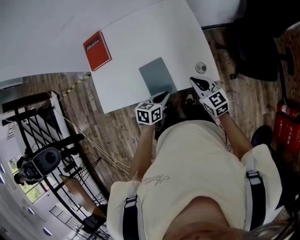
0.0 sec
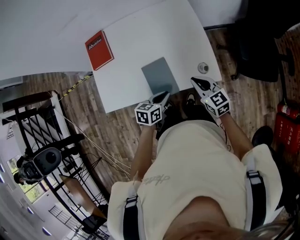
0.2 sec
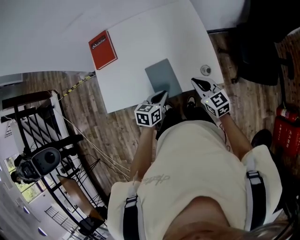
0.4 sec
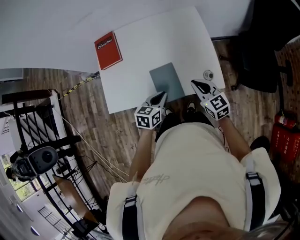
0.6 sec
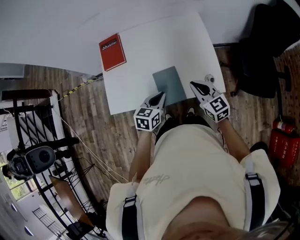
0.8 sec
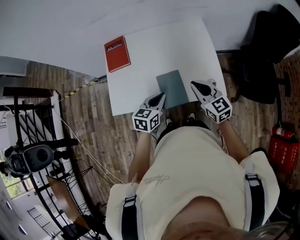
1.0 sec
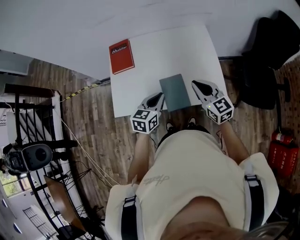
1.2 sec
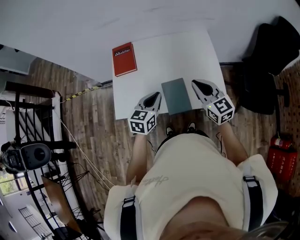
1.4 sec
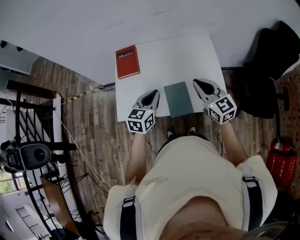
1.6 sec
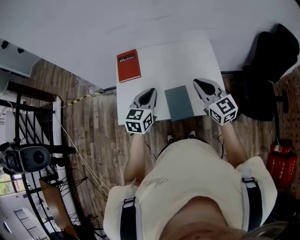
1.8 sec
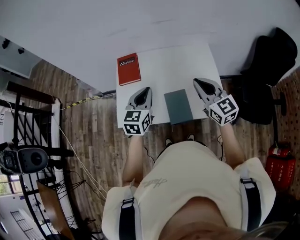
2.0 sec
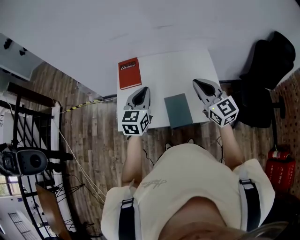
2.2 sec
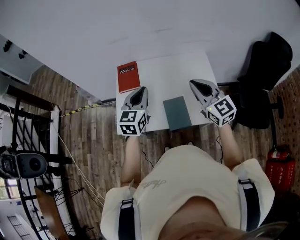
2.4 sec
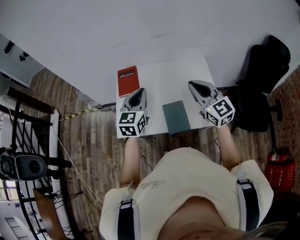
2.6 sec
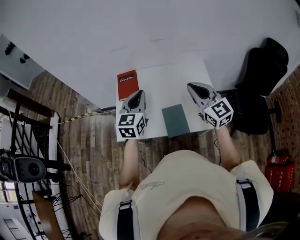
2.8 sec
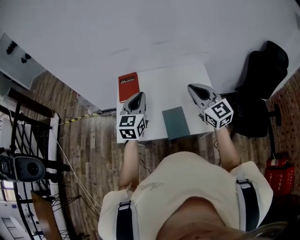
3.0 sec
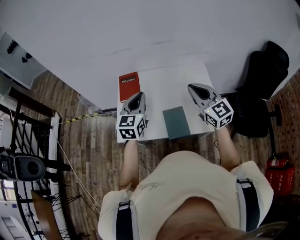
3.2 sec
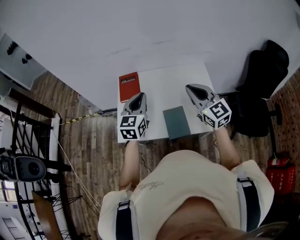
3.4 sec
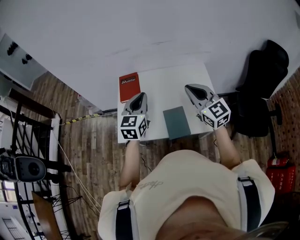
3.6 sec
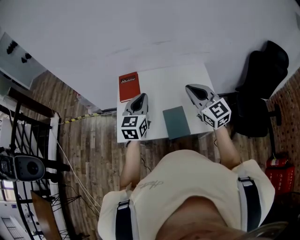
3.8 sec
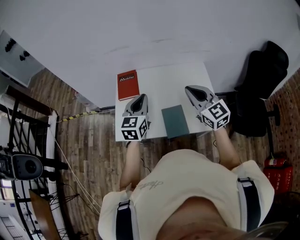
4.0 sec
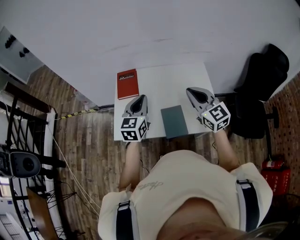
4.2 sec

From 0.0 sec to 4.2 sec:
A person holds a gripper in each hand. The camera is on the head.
From 0.0 sec to 1.4 sec: Both grippers travel together upward and to the left, some 20 cm. The left gripper rotates roughly 30 degrees.
From 1.4 sec to 2.8 sec: The left gripper goes some 15 cm upward and forward, and changes its angle by approximately 20 degrees, while the right gripper is displaced upward by some 10 cm.
From 2.8 sec to 4.2 sec: The grippers stay close to where they were, moving slightly.

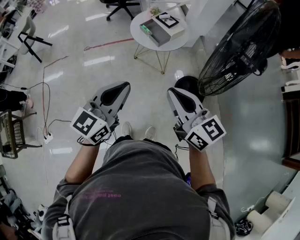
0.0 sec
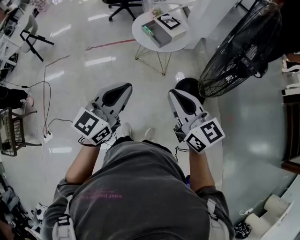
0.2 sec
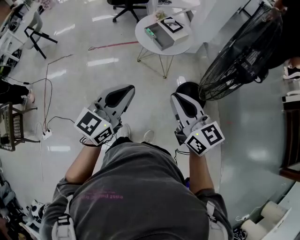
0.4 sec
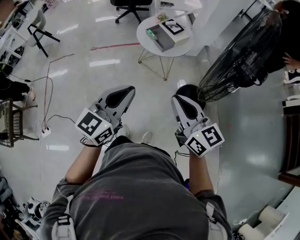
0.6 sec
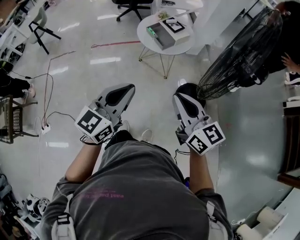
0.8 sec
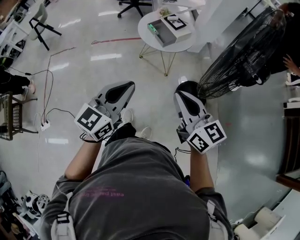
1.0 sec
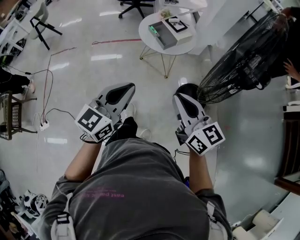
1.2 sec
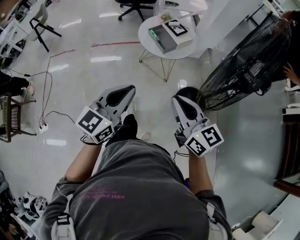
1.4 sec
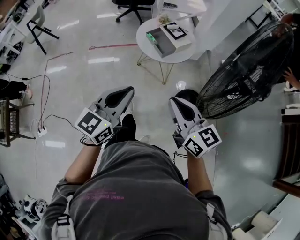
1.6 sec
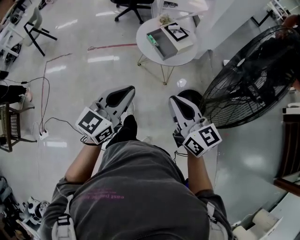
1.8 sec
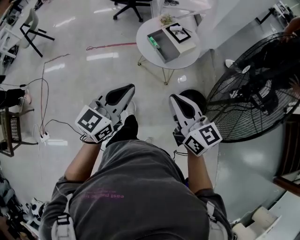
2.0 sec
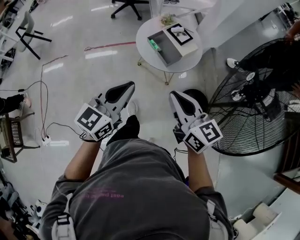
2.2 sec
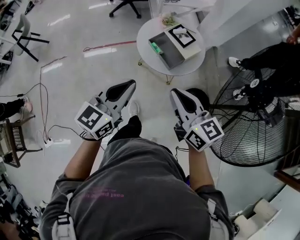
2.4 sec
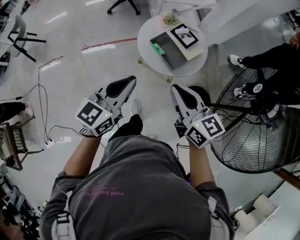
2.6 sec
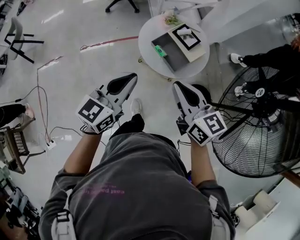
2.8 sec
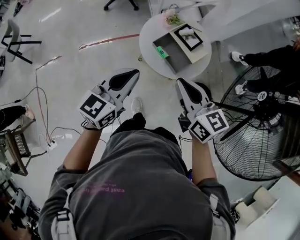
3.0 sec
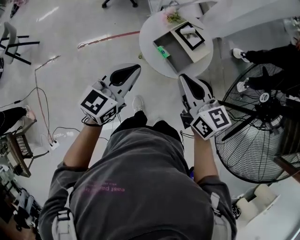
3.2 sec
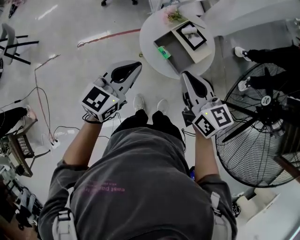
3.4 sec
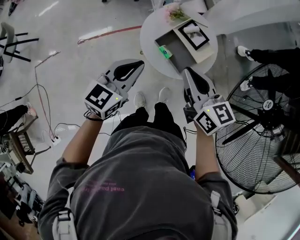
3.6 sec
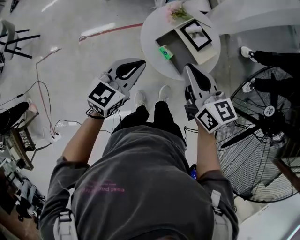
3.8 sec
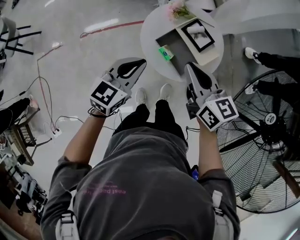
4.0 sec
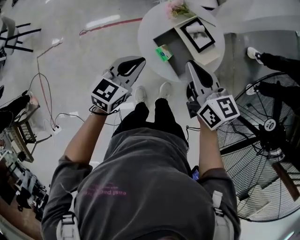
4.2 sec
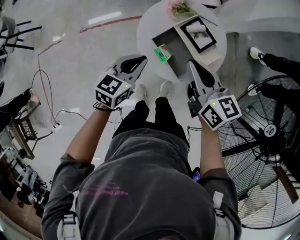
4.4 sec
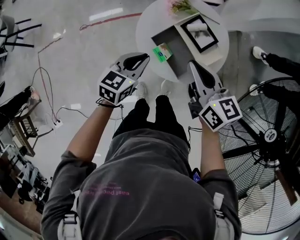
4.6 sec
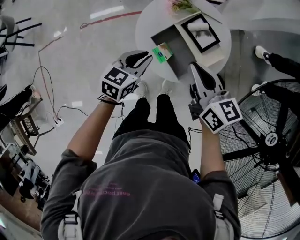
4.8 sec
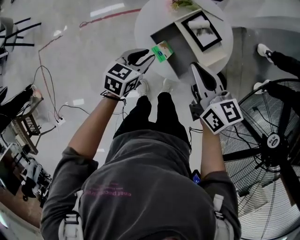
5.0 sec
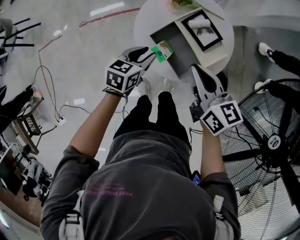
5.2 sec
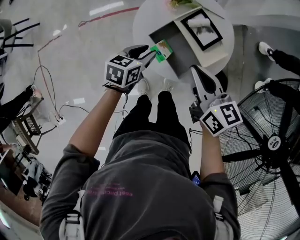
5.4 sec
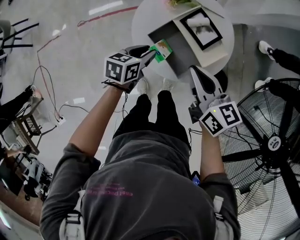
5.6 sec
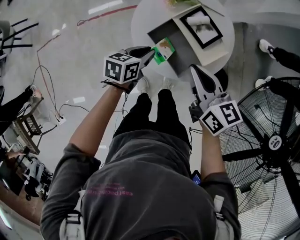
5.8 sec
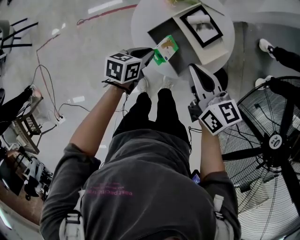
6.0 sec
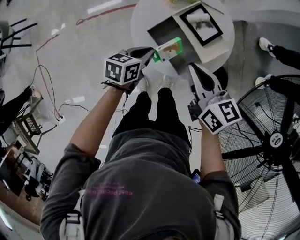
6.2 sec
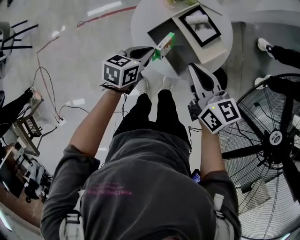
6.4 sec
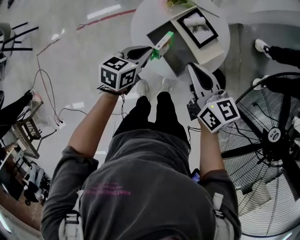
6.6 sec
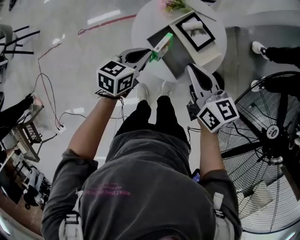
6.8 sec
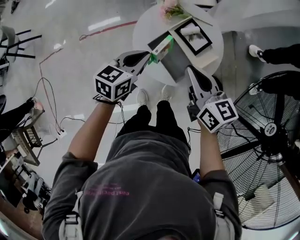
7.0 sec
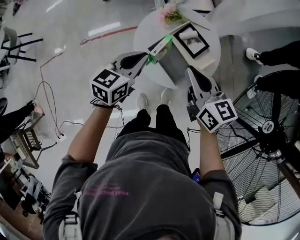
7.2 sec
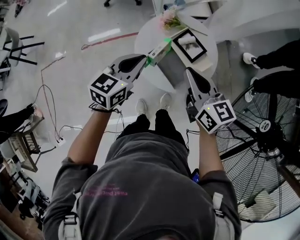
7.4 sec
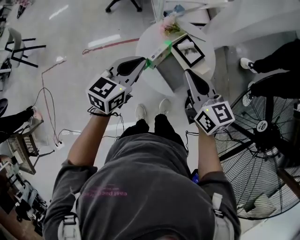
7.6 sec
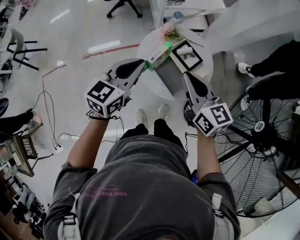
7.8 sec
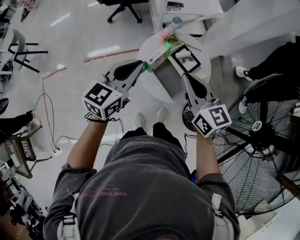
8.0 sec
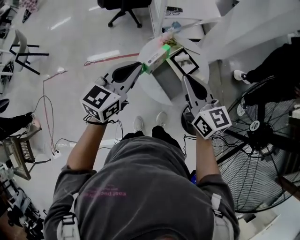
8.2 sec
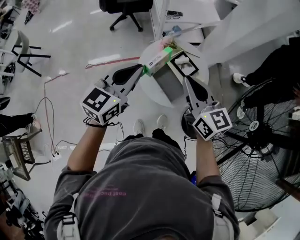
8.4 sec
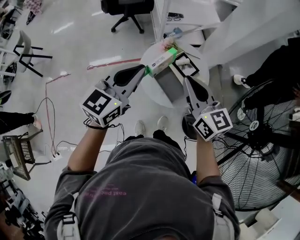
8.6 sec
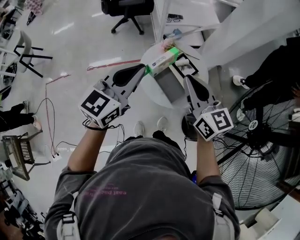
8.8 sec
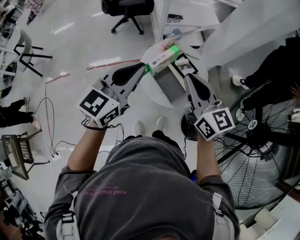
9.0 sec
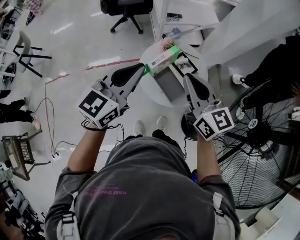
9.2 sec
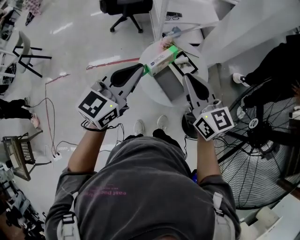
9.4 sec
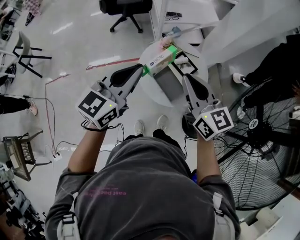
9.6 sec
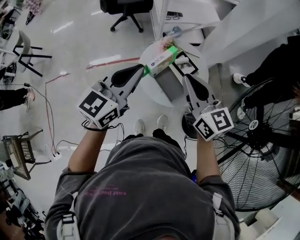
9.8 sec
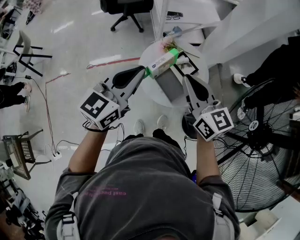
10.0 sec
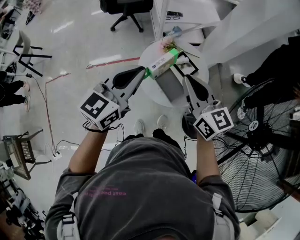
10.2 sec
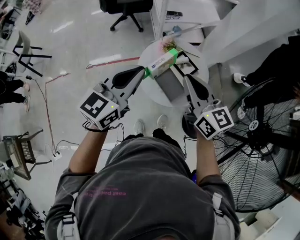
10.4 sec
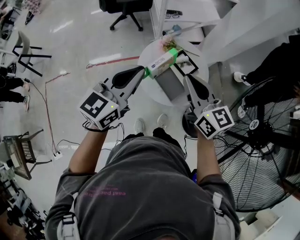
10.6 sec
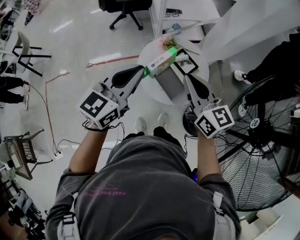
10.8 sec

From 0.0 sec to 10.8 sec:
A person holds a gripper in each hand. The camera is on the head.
From 0.0 sec to 1.6 sec: The left gripper changes place by approximately 5 cm; the right gripper heads forward, covering some 5 cm.
From 1.6 sec to 3.0 sec: Both grippers travel together forward, approximately 35 cm.
From 3.0 sec to 4.6 sec: The left gripper moves downward and forward, roughly 25 cm, and rotates about 20 degrees. The right gripper moves forward and downward, about 20 cm.
From 4.6 sec to 6.2 sec: The right gripper shifts by roughly 5 cm, while the left gripper shifts approximately 10 cm downward, rotates roughly 20 degrees, and opens, then closes once more.
From 6.2 sec to 7.8 sec: The left gripper travels upward by some 30 cm, and rotates about 40 degrees. The right gripper moves upward, about 15 cm.
From 7.8 sec to 9.2 sec: The grippers both shift upward by roughly 10 cm.
From 9.2 sec to 10.8 sec: The grippers make only small movements.

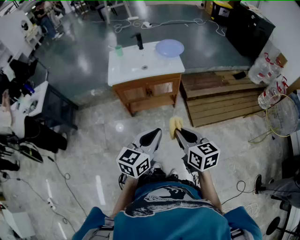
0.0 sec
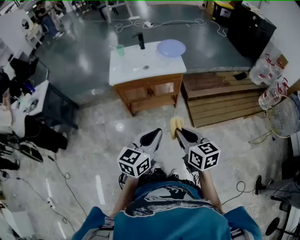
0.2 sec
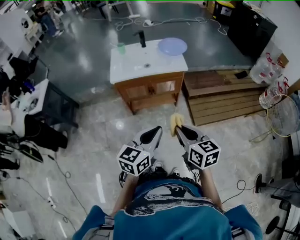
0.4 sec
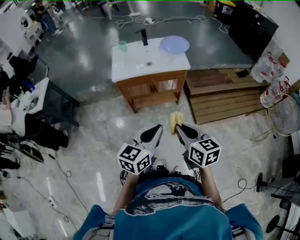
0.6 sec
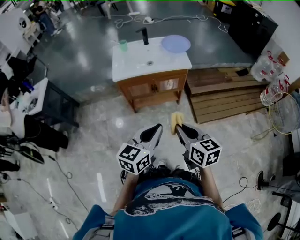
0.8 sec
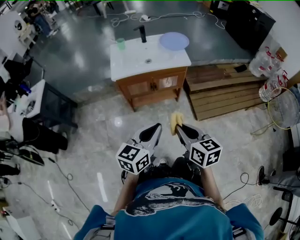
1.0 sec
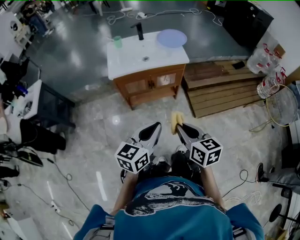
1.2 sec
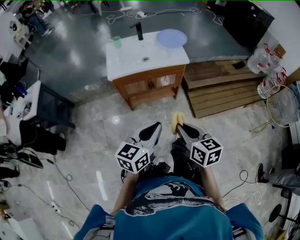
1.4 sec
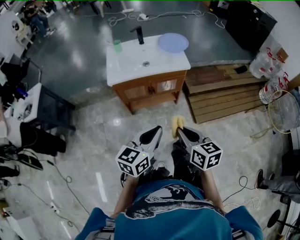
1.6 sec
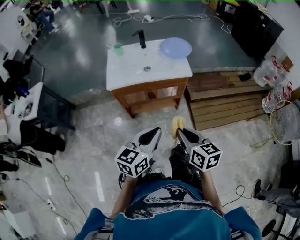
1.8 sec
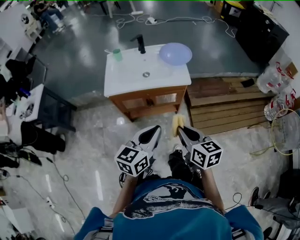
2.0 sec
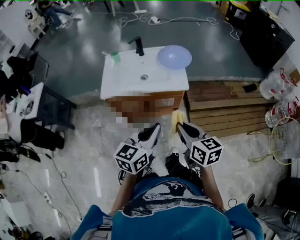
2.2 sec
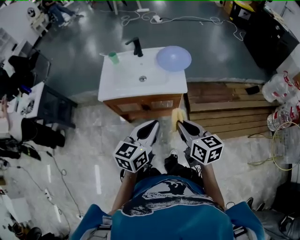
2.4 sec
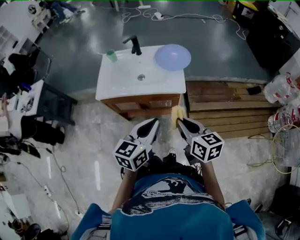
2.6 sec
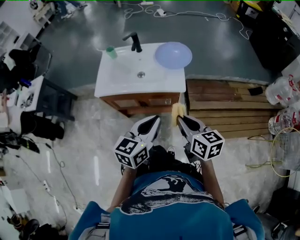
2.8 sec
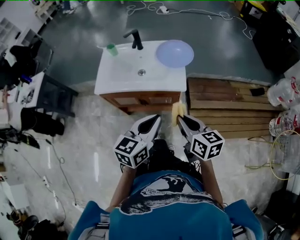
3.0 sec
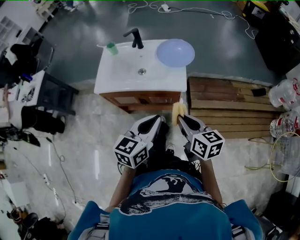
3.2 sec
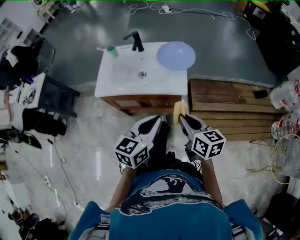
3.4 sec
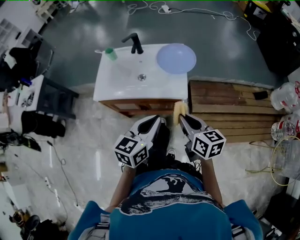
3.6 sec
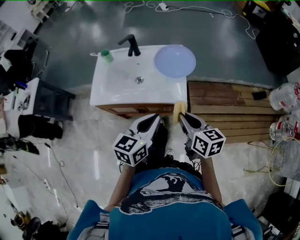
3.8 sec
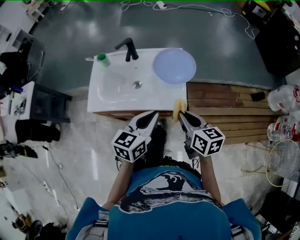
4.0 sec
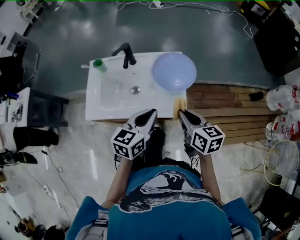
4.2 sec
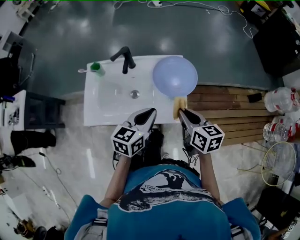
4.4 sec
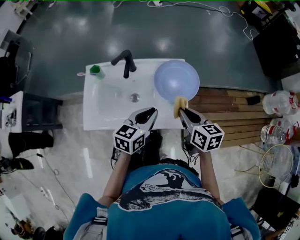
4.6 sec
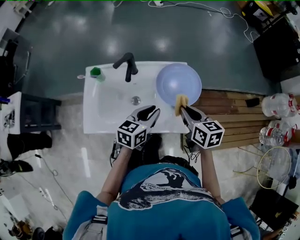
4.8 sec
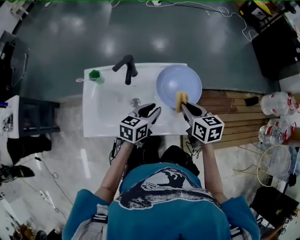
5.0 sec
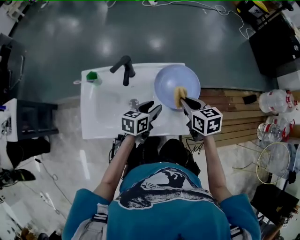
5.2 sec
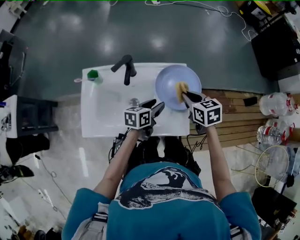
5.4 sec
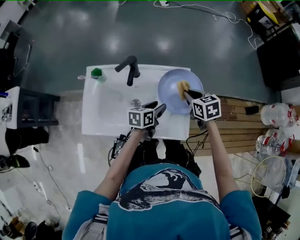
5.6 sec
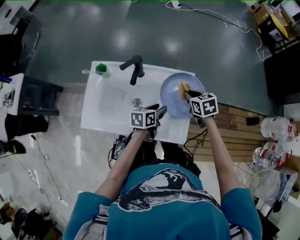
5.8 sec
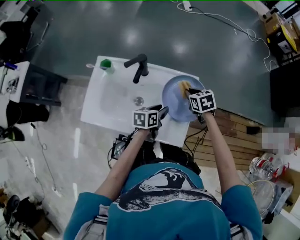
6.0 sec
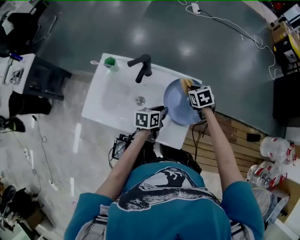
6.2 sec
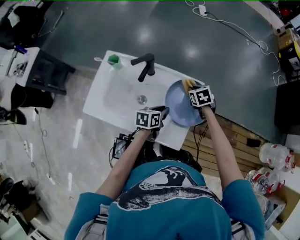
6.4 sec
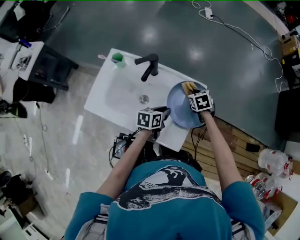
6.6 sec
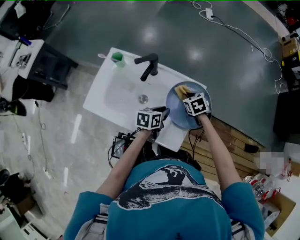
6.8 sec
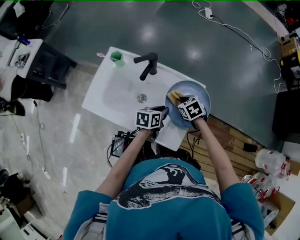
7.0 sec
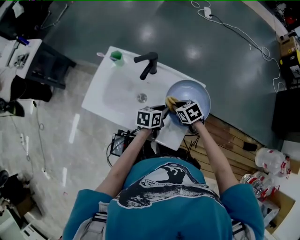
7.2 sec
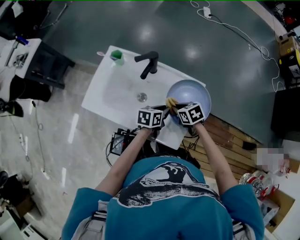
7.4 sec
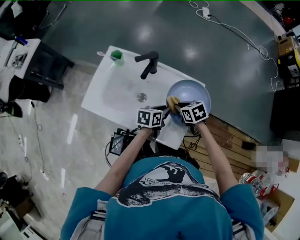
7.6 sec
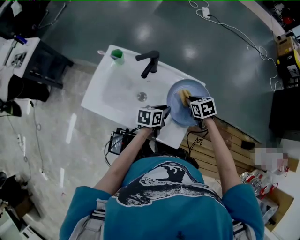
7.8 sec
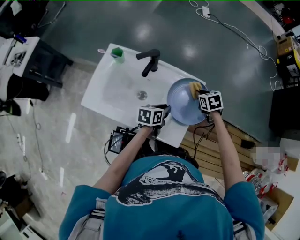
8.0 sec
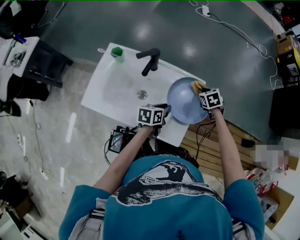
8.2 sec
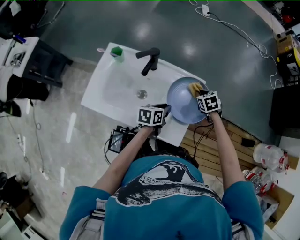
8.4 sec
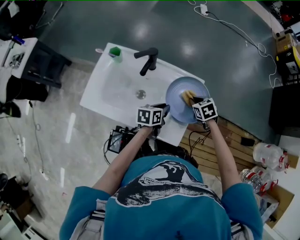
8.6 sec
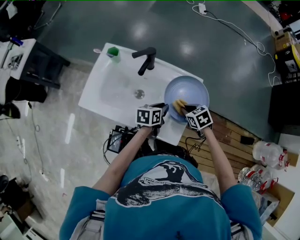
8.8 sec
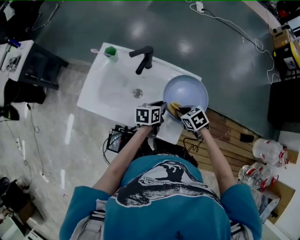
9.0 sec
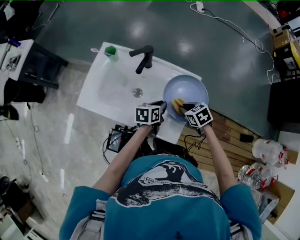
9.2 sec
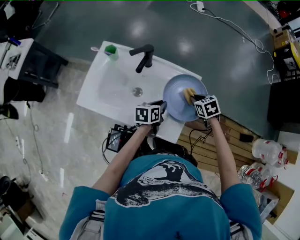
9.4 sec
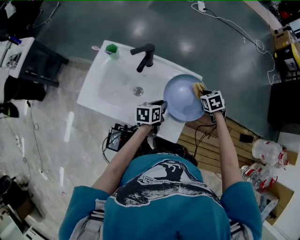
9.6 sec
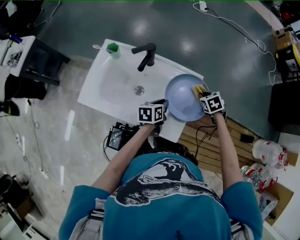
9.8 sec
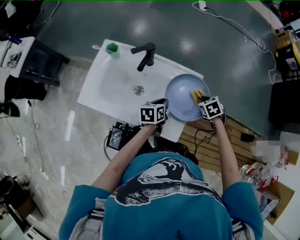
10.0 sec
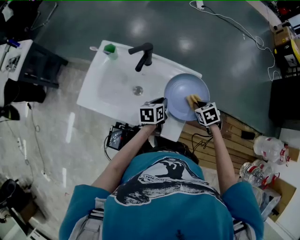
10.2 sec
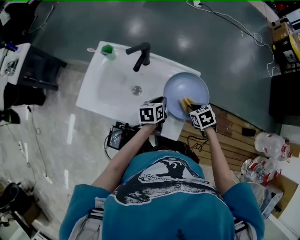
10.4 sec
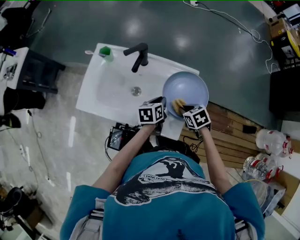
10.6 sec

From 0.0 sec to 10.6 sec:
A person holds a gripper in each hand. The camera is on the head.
From 0.0 sec to 1.6 sec: The left gripper goes some 10 cm forward and to the left. Meanwhile the right gripper travels forward by some 5 cm.
From 1.6 sec to 3.0 sec: Both grippers move forward and to the right, about 30 cm.
From 3.0 sec to 4.6 sec: Both grippers move forward, approximately 30 cm.
From 4.6 sec to 6.0 sec: The left gripper is displaced downward and forward by some 20 cm, changes its angle by approximately 30 degrees, and opens its fingers. Meanwhile the right gripper moves forward and downward, approximately 25 cm, and turns by about 40 degrees.
From 6.0 sec to 7.6 sec: The right gripper shifts some 10 cm backward and to the left.
From 9.0 sec to 10.6 sec: The right gripper reaches approximately 10 cm forward, then returns.
